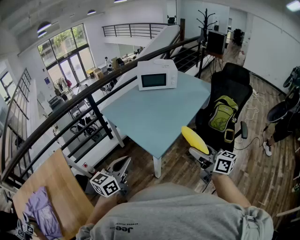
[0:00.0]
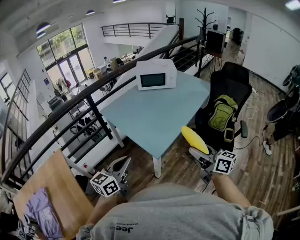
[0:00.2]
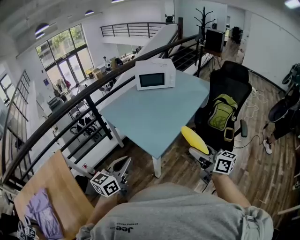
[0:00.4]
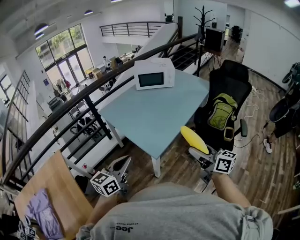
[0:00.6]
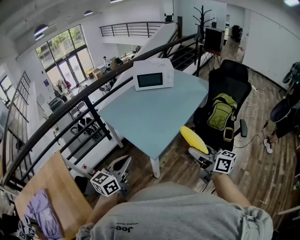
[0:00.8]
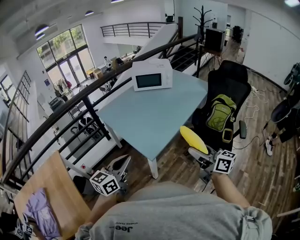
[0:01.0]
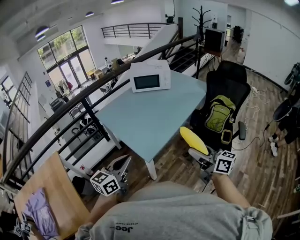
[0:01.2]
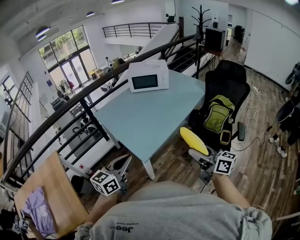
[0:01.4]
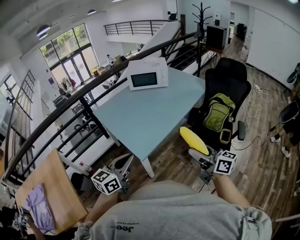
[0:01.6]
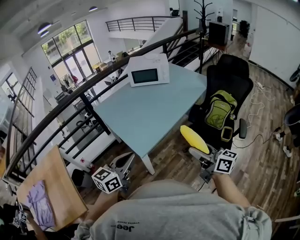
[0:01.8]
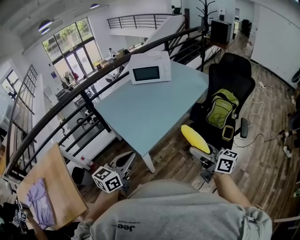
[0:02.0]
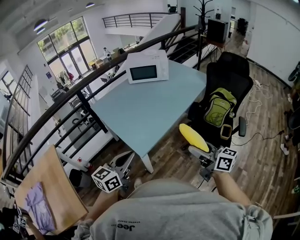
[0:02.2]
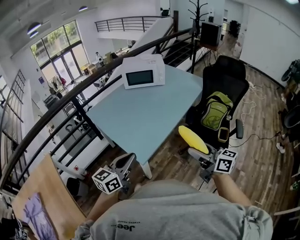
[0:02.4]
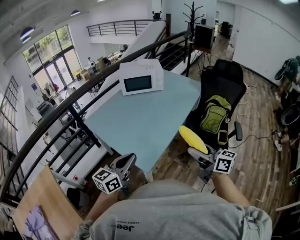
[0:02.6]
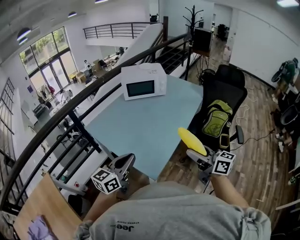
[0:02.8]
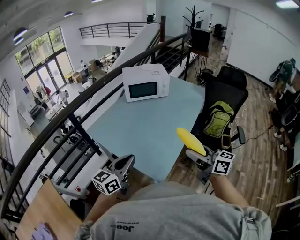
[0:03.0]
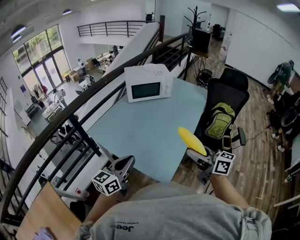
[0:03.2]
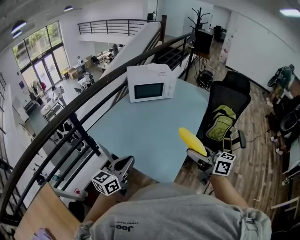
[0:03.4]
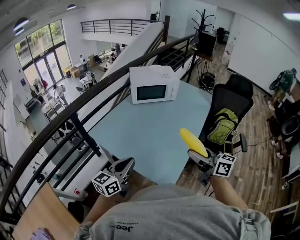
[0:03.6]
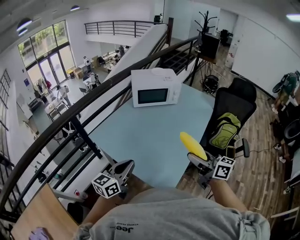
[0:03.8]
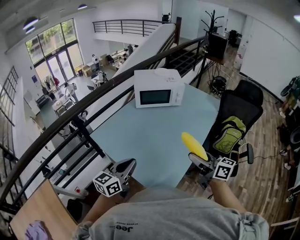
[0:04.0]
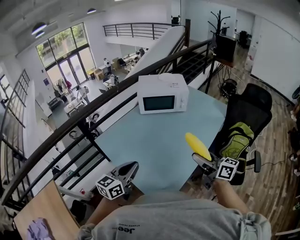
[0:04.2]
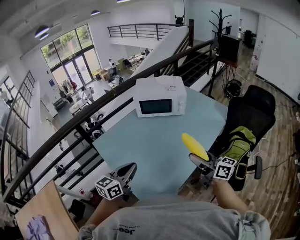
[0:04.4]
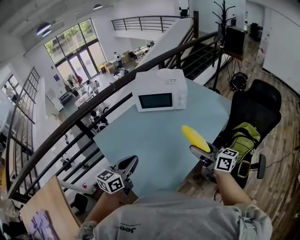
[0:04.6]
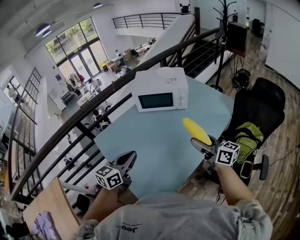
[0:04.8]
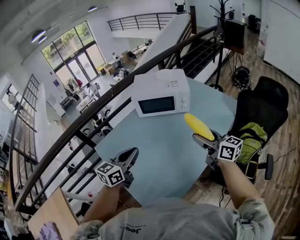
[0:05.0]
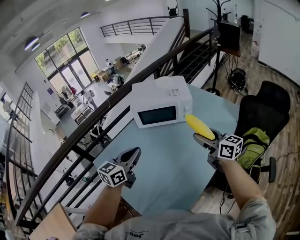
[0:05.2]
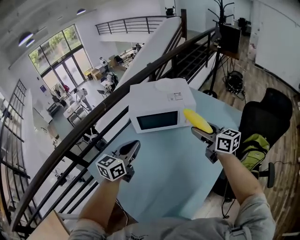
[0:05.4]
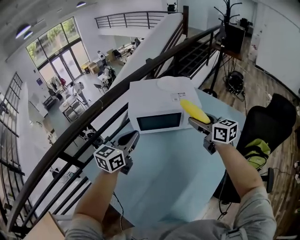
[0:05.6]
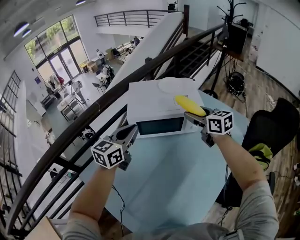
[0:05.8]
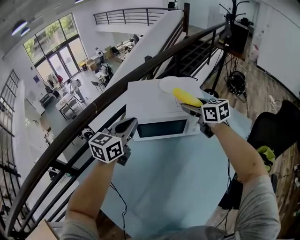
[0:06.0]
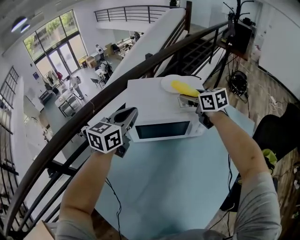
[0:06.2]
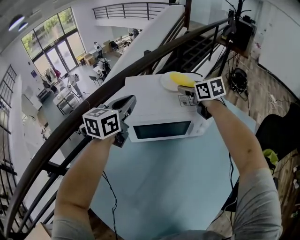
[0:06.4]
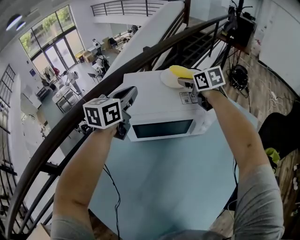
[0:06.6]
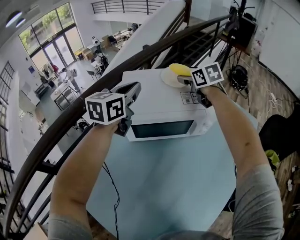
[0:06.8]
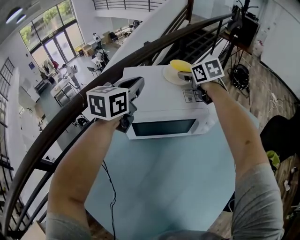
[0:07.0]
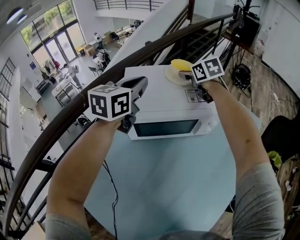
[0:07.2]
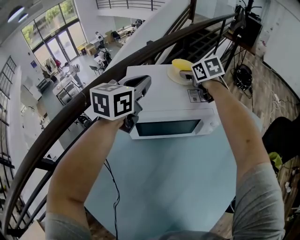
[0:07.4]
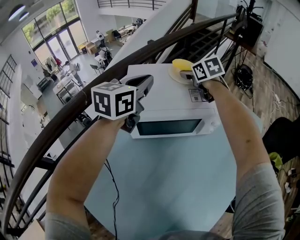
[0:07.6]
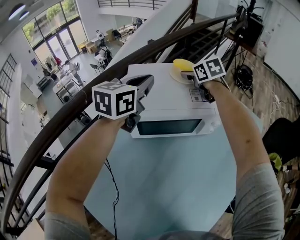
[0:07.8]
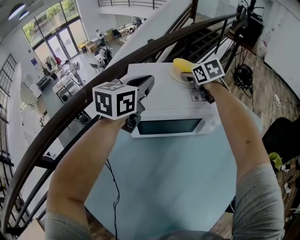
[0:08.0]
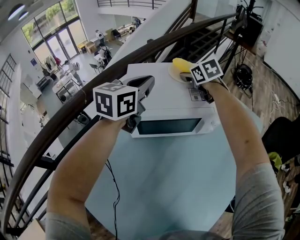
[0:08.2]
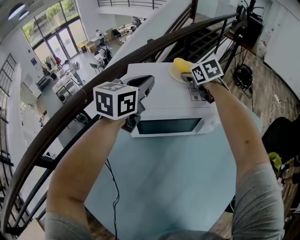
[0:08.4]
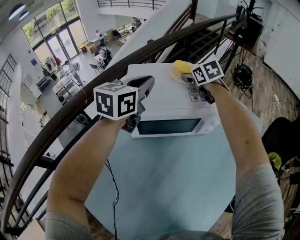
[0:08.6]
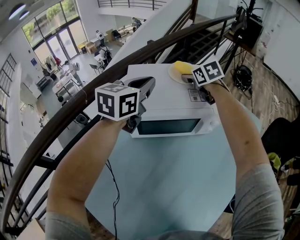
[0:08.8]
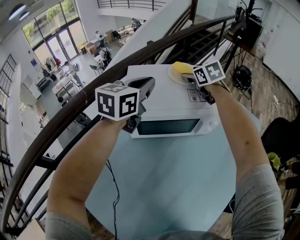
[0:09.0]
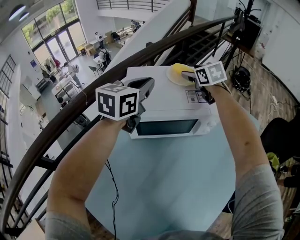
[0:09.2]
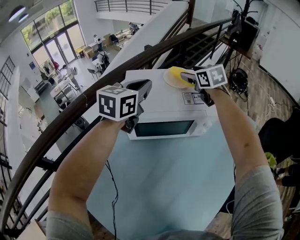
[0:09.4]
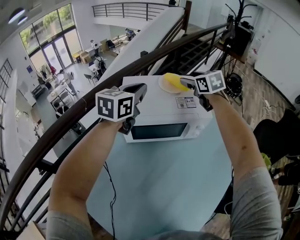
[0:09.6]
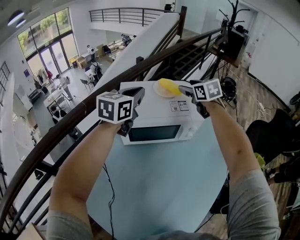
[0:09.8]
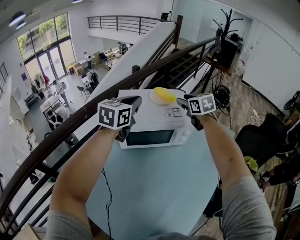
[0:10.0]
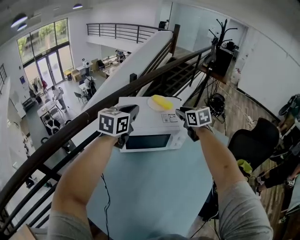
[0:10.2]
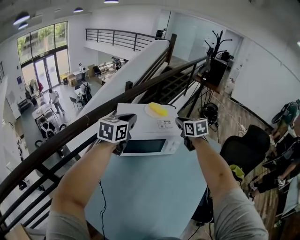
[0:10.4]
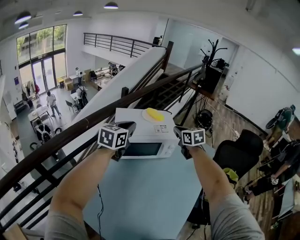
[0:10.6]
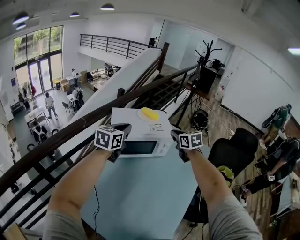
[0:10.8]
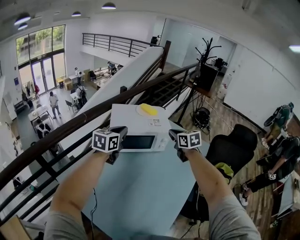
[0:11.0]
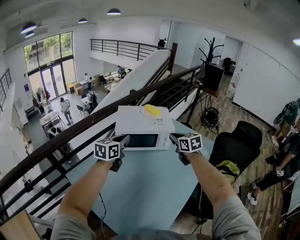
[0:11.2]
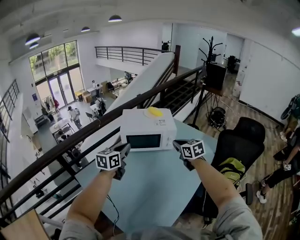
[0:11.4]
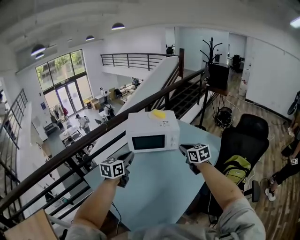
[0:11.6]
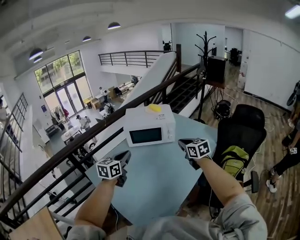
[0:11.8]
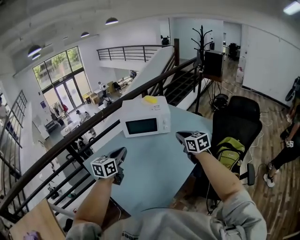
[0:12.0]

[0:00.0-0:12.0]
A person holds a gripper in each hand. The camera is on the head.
0:00.0 to 0:01.6: Both grippers move to the right, approximately 15 cm.
0:01.6 to 0:03.0: The left gripper moves forward and to the left, some 25 cm, while the right gripper shifts roughly 25 cm to the left and forward.
0:03.0 to 0:04.4: The grippers both shift forward by some 20 cm.
0:04.4 to 0:06.0: The two grippers travel together, forward, approximately 50 cm. The right gripper rotates about 40 degrees.
0:06.0 to 0:07.6: Both grippers move forward, roughly 15 cm.
0:07.6 to 0:09.0: The grippers move only a little.
0:09.0 to 0:10.4: The left gripper travels backward and upward by about 15 cm. Meanwhile the right gripper is displaced backward, upward and to the right by approximately 20 cm, and closes its fingers.
0:10.4 to 0:12.0: The two grippers go some 40 cm backward.

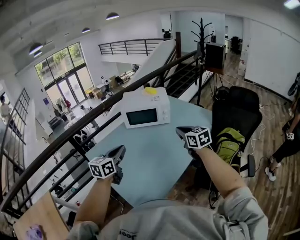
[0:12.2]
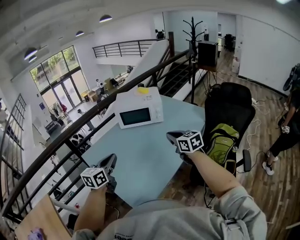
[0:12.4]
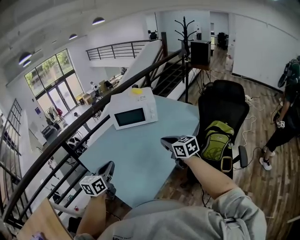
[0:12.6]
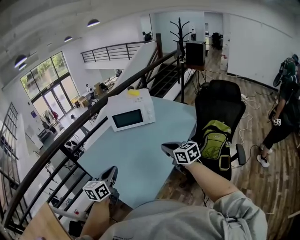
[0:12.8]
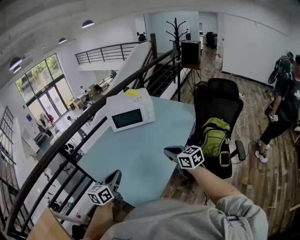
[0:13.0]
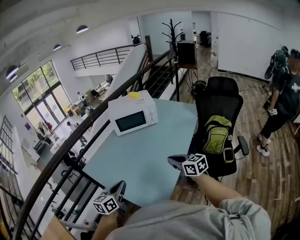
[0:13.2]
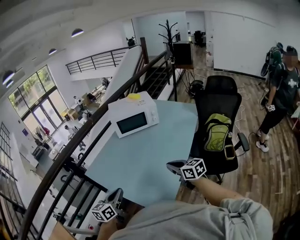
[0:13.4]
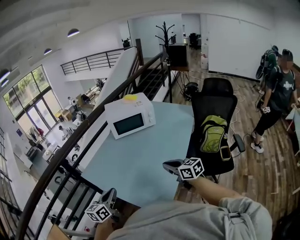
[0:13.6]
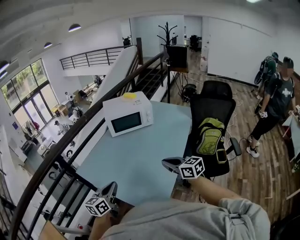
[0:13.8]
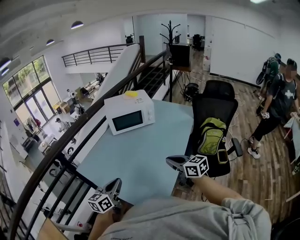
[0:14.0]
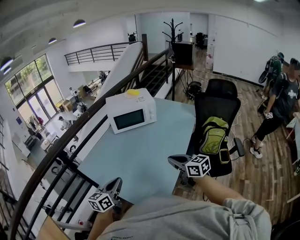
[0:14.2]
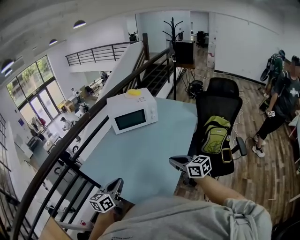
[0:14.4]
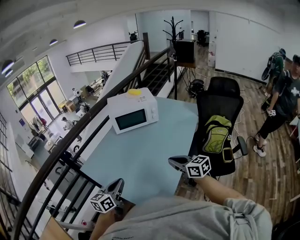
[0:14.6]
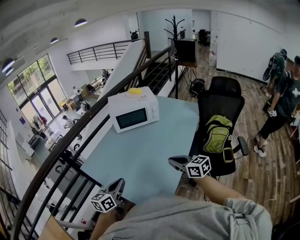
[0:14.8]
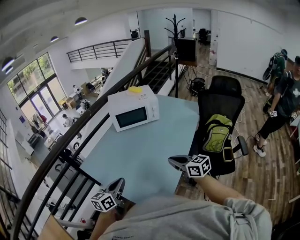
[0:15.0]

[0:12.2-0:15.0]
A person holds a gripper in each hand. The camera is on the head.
0:12.2 to 0:13.6: The right gripper shifts some 25 cm backward, to the left and downward, while the left gripper heads to the left, backward and downward, covering roughly 20 cm.
0:13.6 to 0:15.0: The left gripper travels to the right by approximately 5 cm.

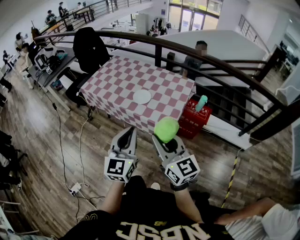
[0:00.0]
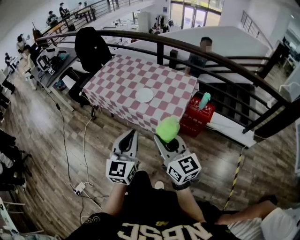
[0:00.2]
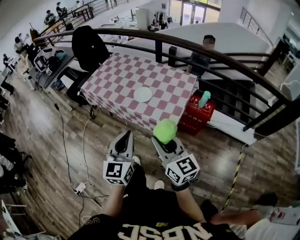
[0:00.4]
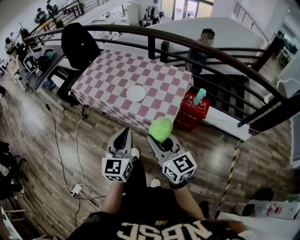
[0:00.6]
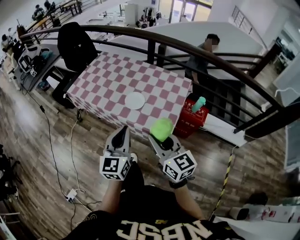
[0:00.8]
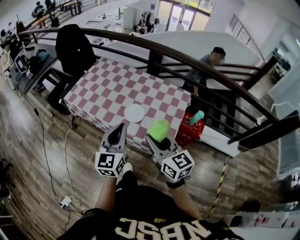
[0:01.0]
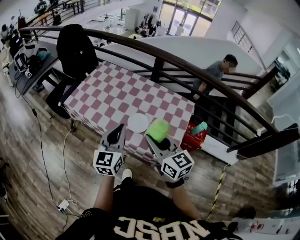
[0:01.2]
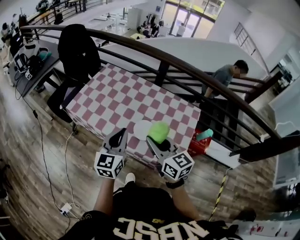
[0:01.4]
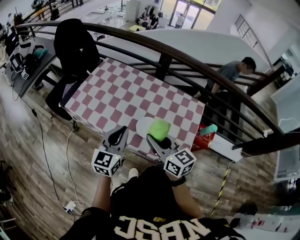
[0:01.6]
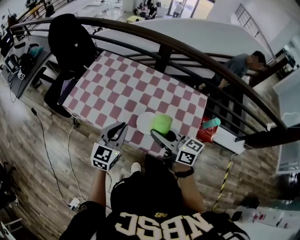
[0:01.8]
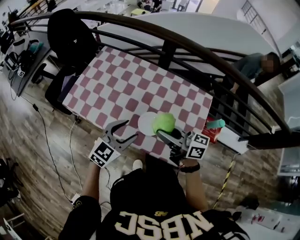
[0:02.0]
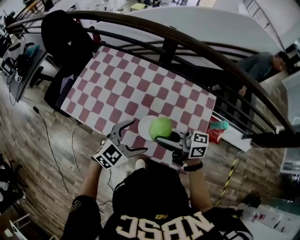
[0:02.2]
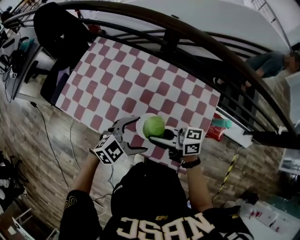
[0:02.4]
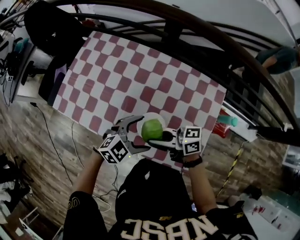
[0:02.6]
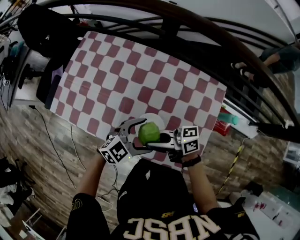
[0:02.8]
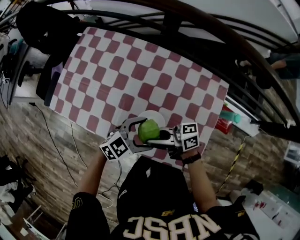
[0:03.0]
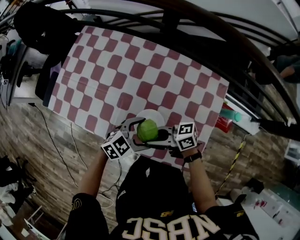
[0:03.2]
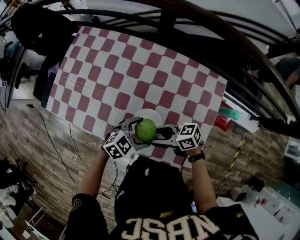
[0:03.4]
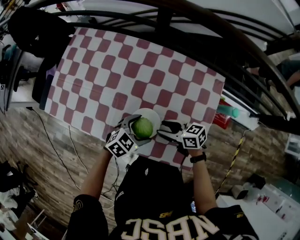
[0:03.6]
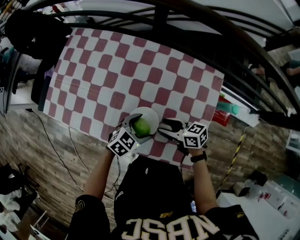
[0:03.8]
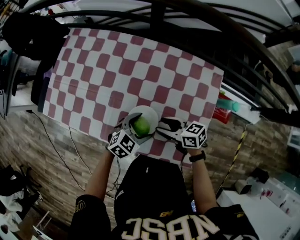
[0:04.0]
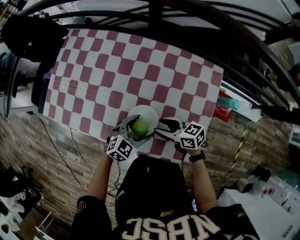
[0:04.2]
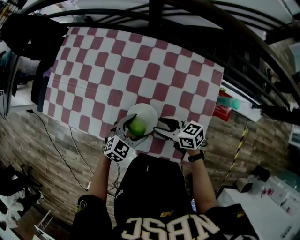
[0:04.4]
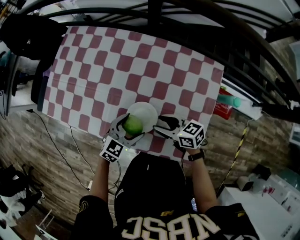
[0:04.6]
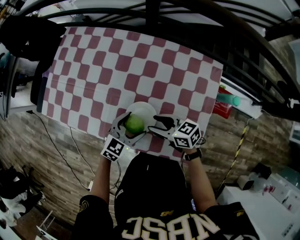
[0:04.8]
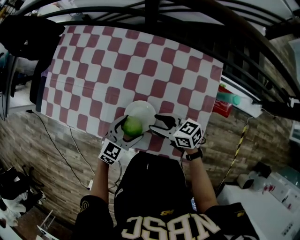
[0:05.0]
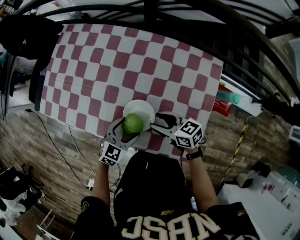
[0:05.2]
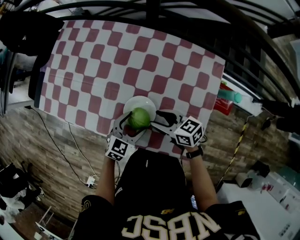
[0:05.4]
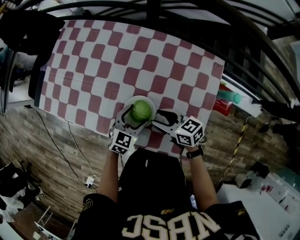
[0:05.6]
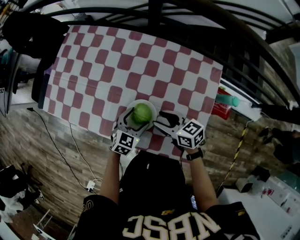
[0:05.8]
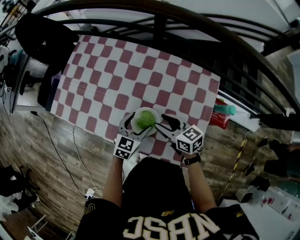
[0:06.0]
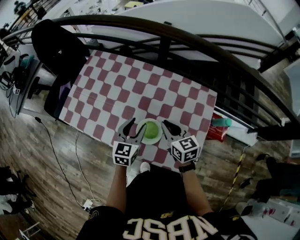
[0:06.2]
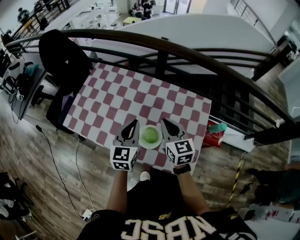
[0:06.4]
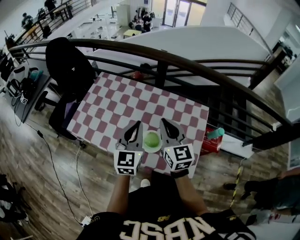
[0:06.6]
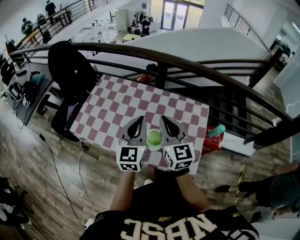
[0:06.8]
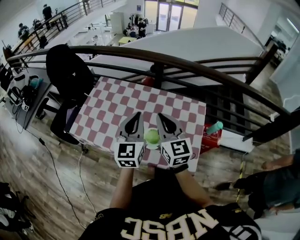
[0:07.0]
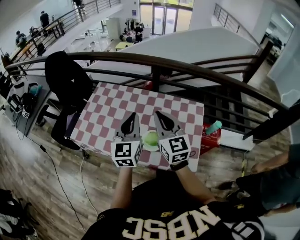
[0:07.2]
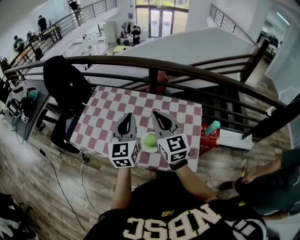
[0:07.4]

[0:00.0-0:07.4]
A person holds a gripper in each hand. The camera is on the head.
0:00.0 to 0:01.4: The two grippers go some 35 cm forward.
0:01.4 to 0:03.0: Both grippers move downward, some 20 cm. The left gripper rotates some 60 degrees, and opens. Meanwhile the right gripper rotates some 60 degrees.
0:03.0 to 0:04.4: Both grippers move downward, approximately 10 cm. The right gripper angles its fingers downward, by roughly 30 degrees, and opens.
0:04.4 to 0:06.0: The right gripper shifts roughly 5 cm upward. The left gripper turns by approximately 30 degrees.
0:06.0 to 0:07.4: The two grippers go roughly 30 cm upward. The left gripper tips its fingers upward by some 30 degrees, and closes its fingers. Meanwhile the right gripper changes its angle by roughly 50 degrees, and closes its fingers.

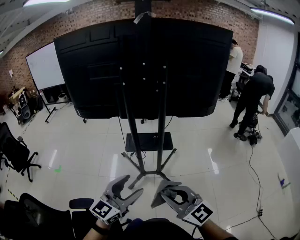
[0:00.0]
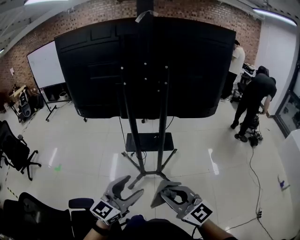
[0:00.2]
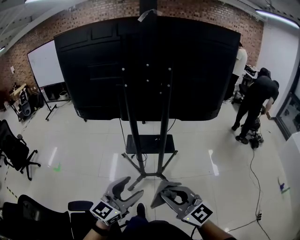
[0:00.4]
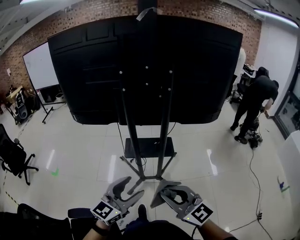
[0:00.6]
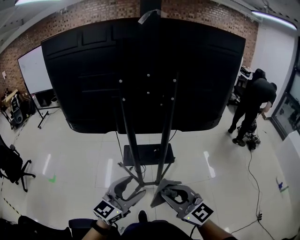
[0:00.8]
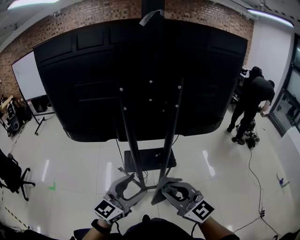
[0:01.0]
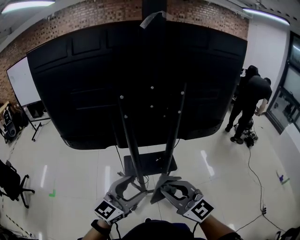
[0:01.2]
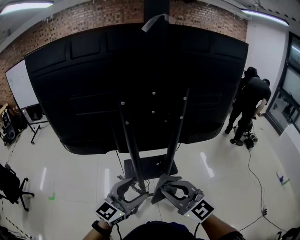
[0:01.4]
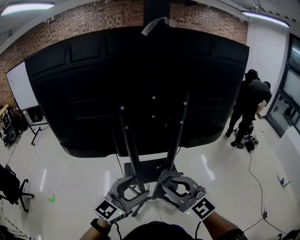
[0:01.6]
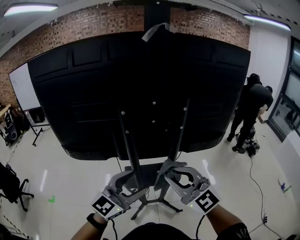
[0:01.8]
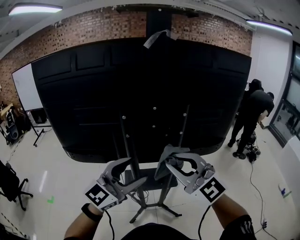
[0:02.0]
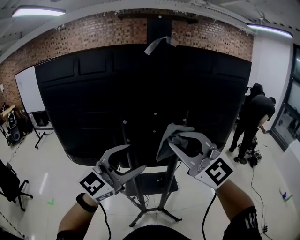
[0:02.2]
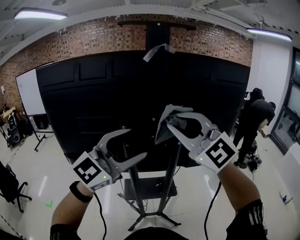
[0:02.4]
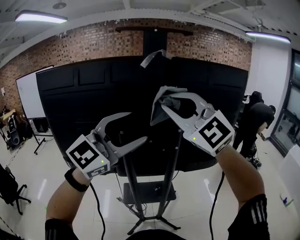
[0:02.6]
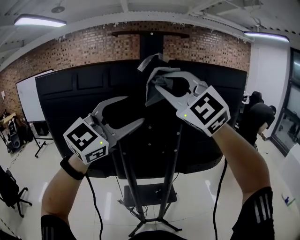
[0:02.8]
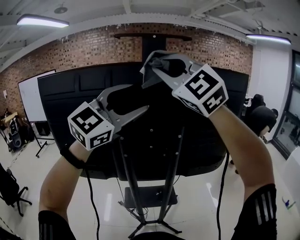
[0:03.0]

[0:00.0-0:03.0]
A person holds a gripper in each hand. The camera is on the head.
0:00.0 to 0:01.6: The grippers both shift forward by about 30 cm.
0:01.6 to 0:03.0: The left gripper goes some 35 cm upward, and swivels some 30 degrees. Meanwhile the right gripper goes some 40 cm upward and forward, and swivels approximately 40 degrees.
